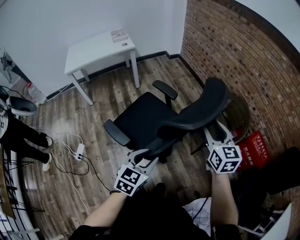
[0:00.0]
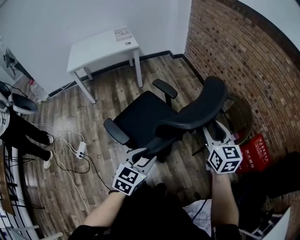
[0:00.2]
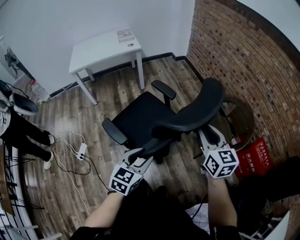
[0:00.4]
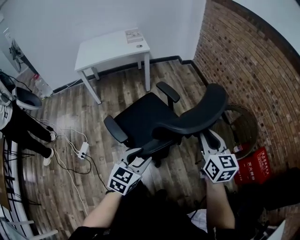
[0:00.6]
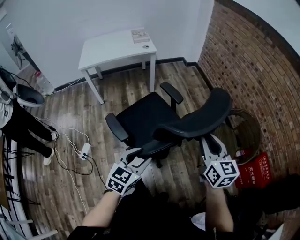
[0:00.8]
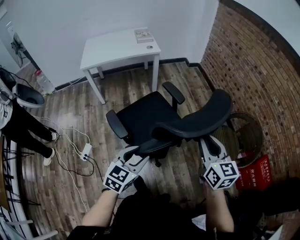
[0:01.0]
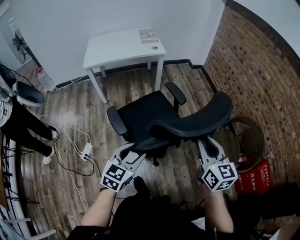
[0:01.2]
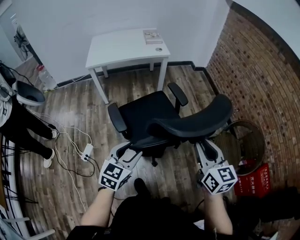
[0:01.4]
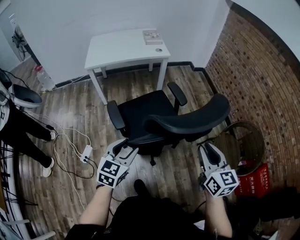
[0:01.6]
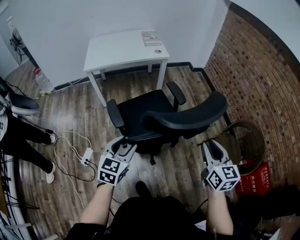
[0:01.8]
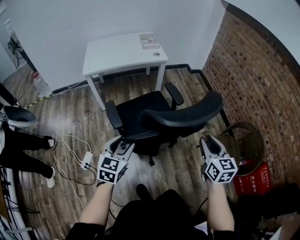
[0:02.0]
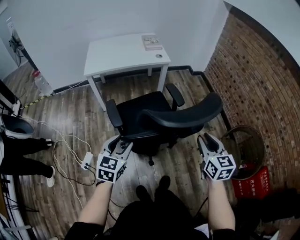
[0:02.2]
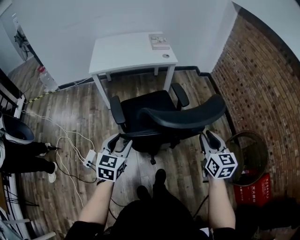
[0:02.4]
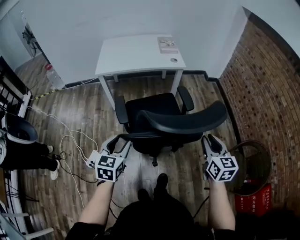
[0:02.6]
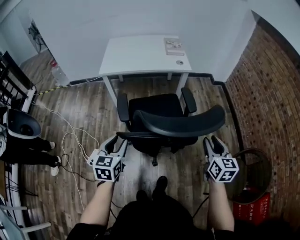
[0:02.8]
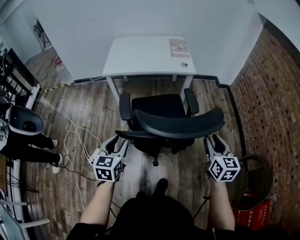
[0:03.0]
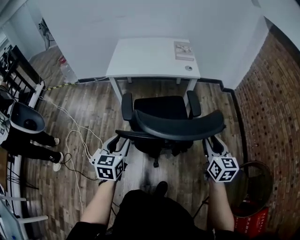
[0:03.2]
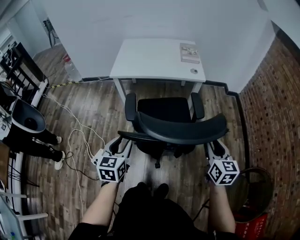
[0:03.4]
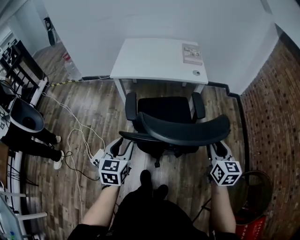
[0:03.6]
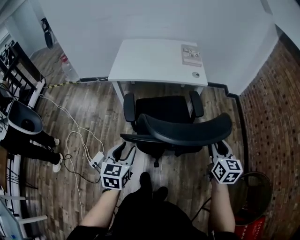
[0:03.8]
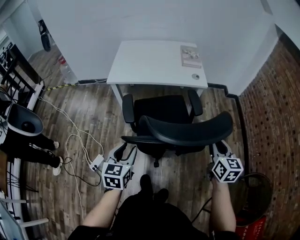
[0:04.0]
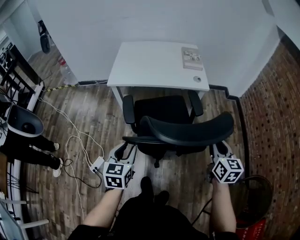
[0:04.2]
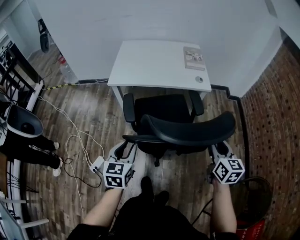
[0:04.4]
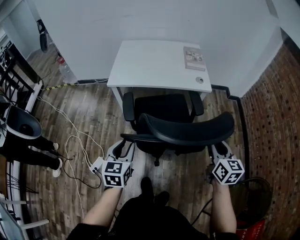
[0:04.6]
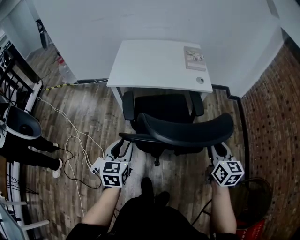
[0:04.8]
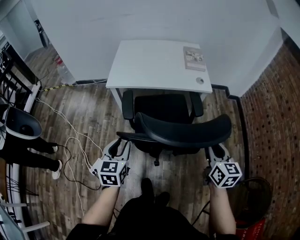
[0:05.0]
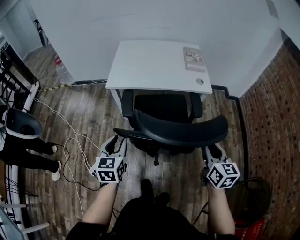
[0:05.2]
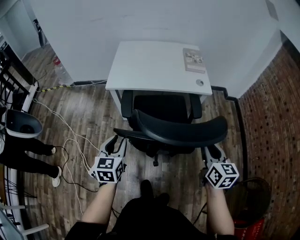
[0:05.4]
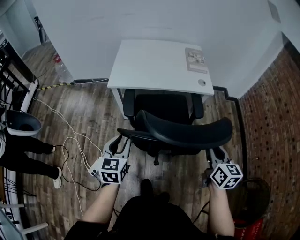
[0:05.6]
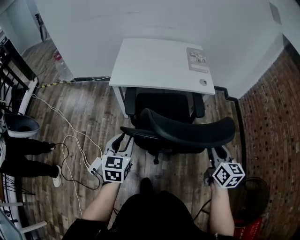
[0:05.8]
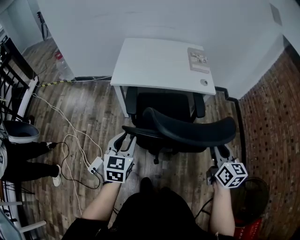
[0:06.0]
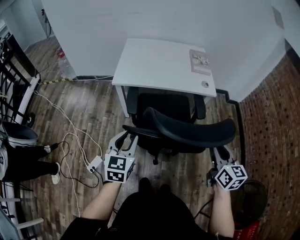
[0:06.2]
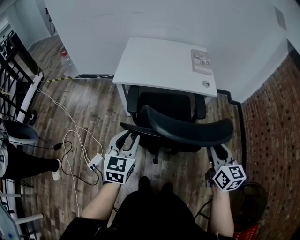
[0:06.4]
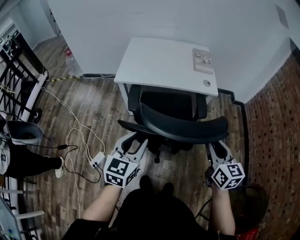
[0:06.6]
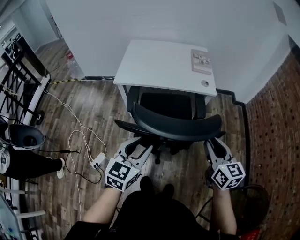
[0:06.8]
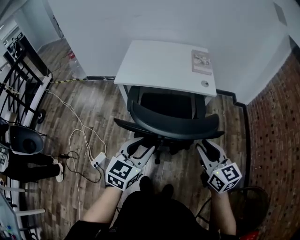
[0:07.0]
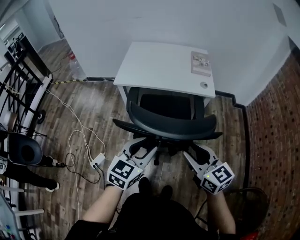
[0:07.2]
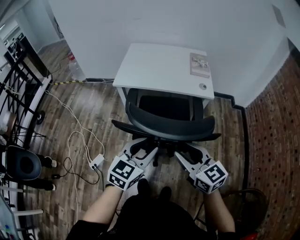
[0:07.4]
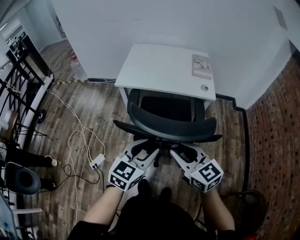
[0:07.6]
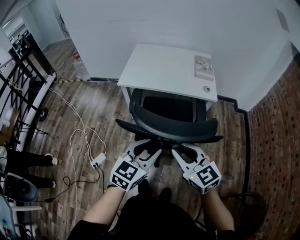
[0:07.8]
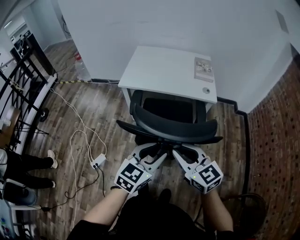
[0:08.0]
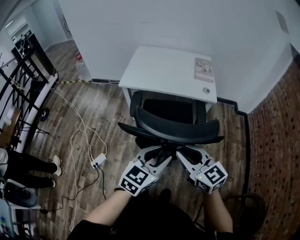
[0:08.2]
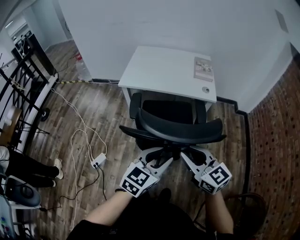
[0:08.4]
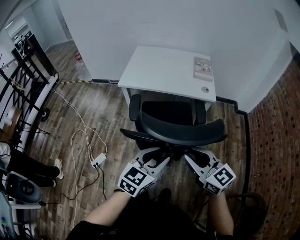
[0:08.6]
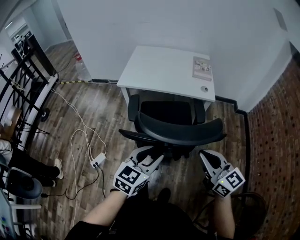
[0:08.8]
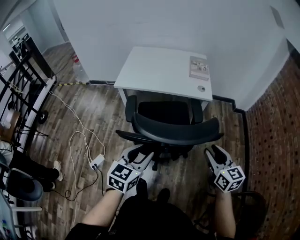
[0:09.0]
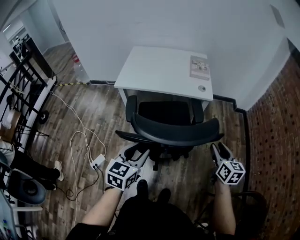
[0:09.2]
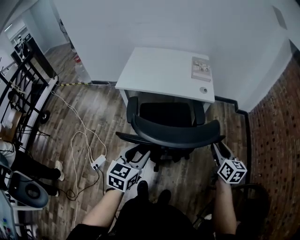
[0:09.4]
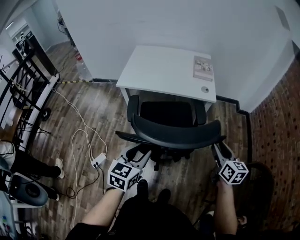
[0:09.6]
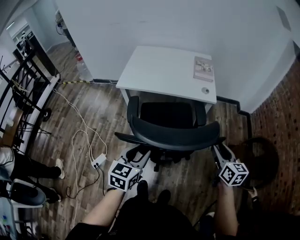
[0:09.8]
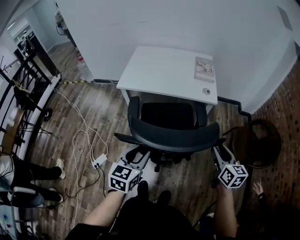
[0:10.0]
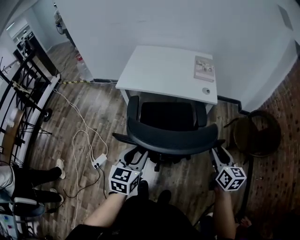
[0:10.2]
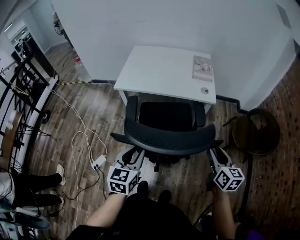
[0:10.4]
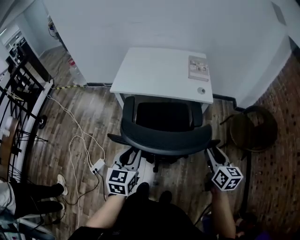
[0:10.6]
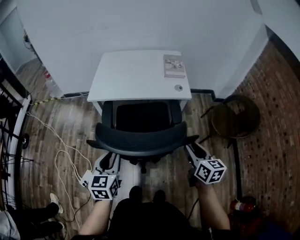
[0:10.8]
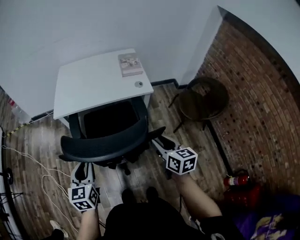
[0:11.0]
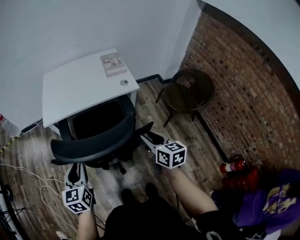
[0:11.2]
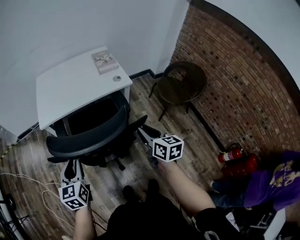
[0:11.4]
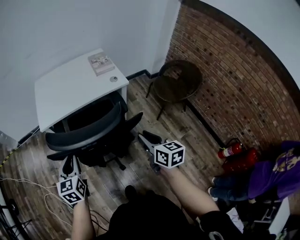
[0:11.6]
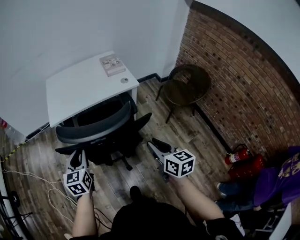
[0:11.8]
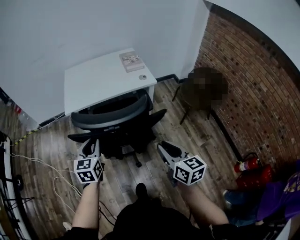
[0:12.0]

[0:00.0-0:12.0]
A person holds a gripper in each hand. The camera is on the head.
0.0 to 1.6 s: The right gripper heads to the left, covering some 30 cm, and closes up, while the left gripper is displaced to the left and forward by roughly 35 cm.
1.6 to 3.0 s: The right gripper heads forward, covering approximately 25 cm; the left gripper shifts approximately 20 cm forward and to the left, and rotates roughly 30 degrees.
3.0 to 4.4 s: Both grippers move forward, roughly 15 cm. The right gripper closes and opens again.
4.4 to 6.0 s: The left gripper goes approximately 10 cm to the left and forward, while the right gripper heads to the left, covering some 5 cm.
6.0 to 7.6 s: The left gripper is displaced to the right and backward by some 20 cm; the right gripper travels to the left by approximately 10 cm, and swivels roughly 40 degrees.
7.6 to 9.0 s: The right gripper travels to the right by about 20 cm, rotates approximately 20 degrees, and closes, then reopens.
9.0 to 10.4 s: The right gripper moves forward, some 5 cm. The left gripper changes place by some 5 cm.
10.4 to 12.0 s: The left gripper travels to the left by some 10 cm; the right gripper heads to the left and backward, covering roughly 20 cm, and closes up.

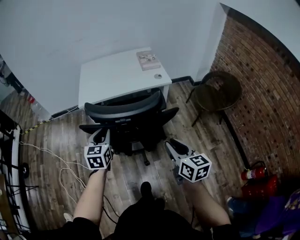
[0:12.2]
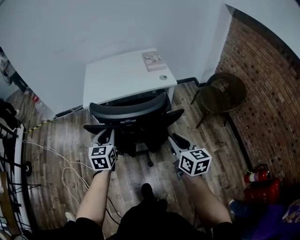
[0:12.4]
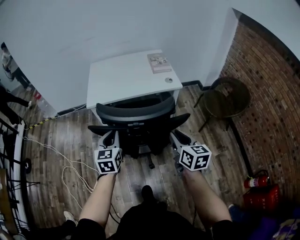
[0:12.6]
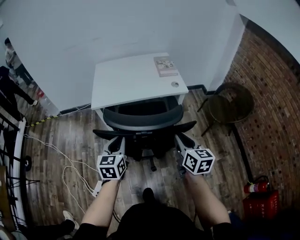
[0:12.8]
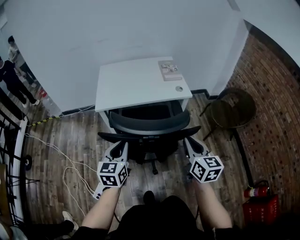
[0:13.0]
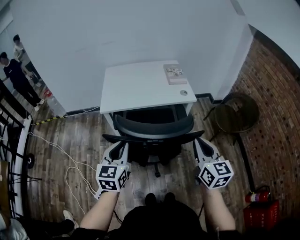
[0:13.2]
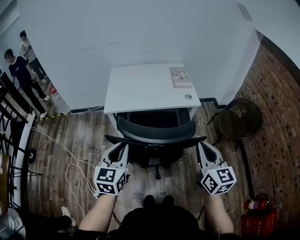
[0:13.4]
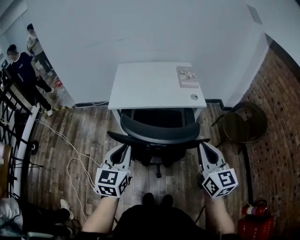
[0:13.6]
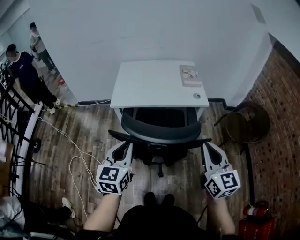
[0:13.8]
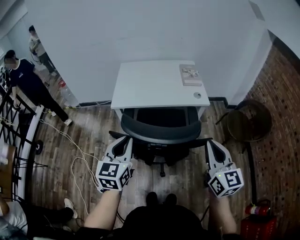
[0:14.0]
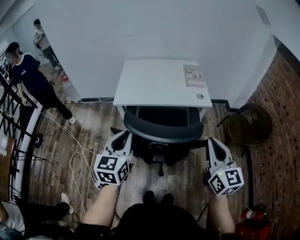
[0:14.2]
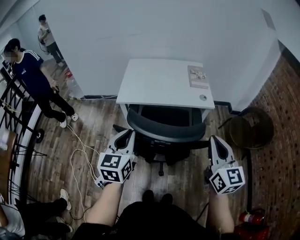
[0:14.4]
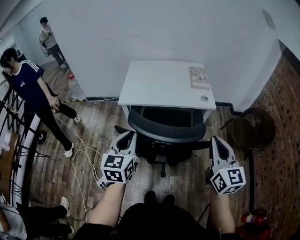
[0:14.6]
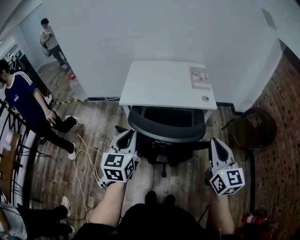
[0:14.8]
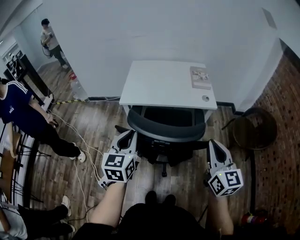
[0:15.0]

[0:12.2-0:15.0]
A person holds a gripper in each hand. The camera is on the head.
12.2 to 13.6 s: The right gripper moves upward and forward, approximately 15 cm, and closes its fingers, while the left gripper heads upward, covering approximately 10 cm.
13.6 to 15.0 s: The grippers stay close to where they were, moving slightly.

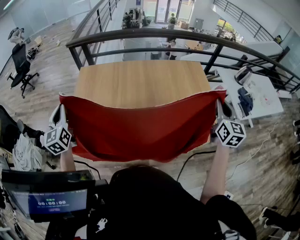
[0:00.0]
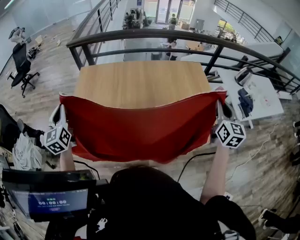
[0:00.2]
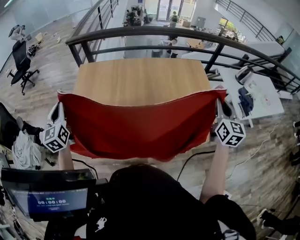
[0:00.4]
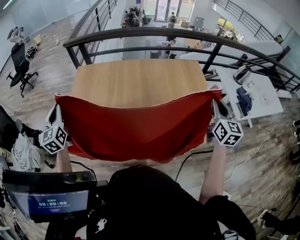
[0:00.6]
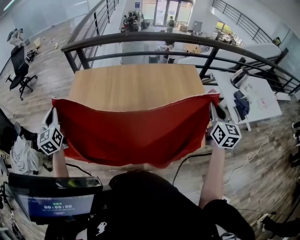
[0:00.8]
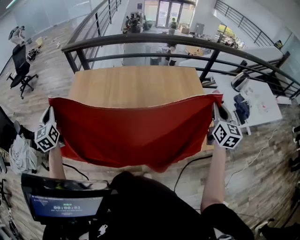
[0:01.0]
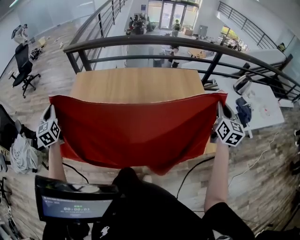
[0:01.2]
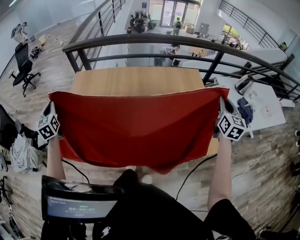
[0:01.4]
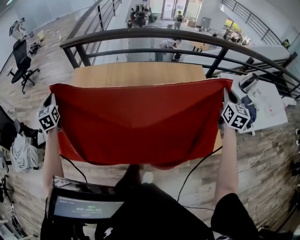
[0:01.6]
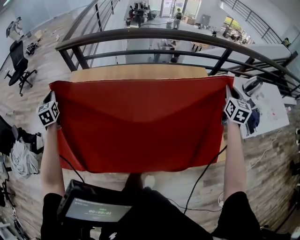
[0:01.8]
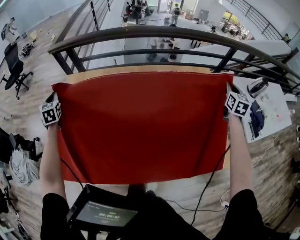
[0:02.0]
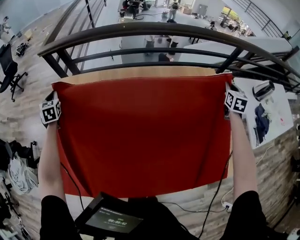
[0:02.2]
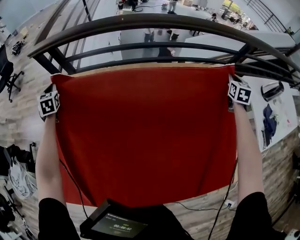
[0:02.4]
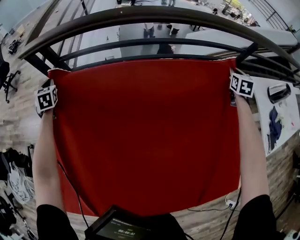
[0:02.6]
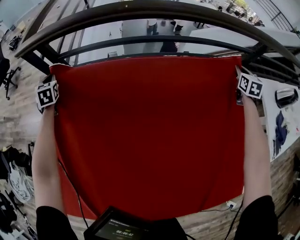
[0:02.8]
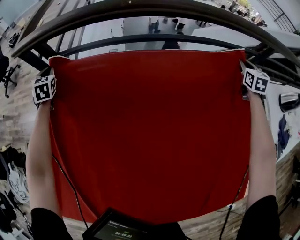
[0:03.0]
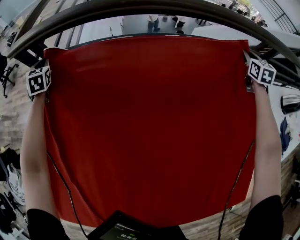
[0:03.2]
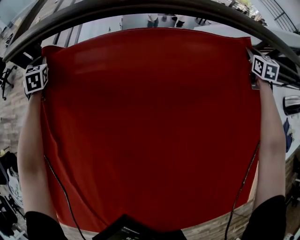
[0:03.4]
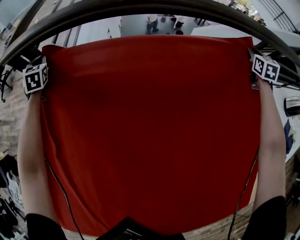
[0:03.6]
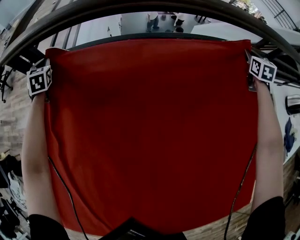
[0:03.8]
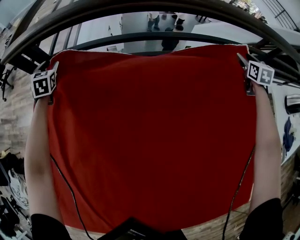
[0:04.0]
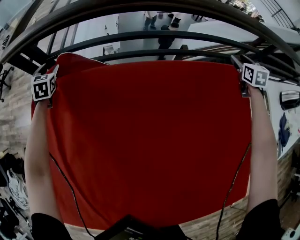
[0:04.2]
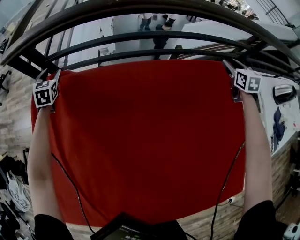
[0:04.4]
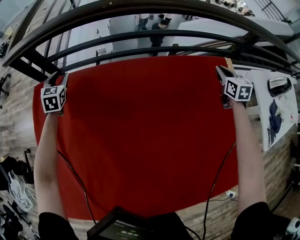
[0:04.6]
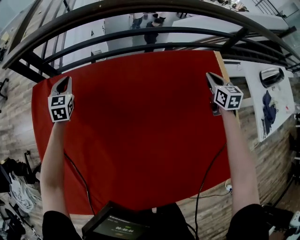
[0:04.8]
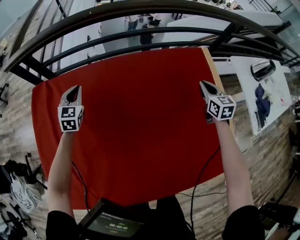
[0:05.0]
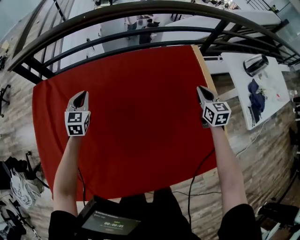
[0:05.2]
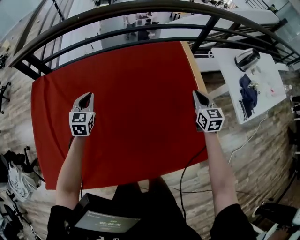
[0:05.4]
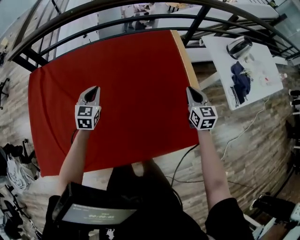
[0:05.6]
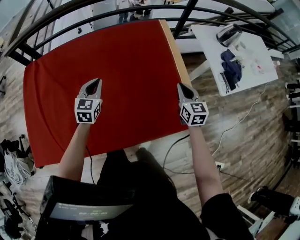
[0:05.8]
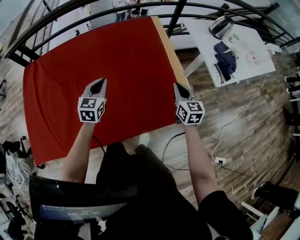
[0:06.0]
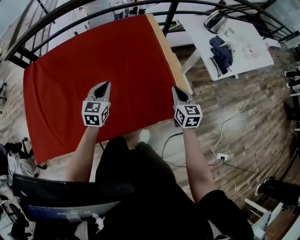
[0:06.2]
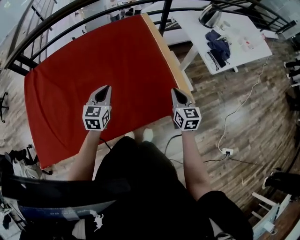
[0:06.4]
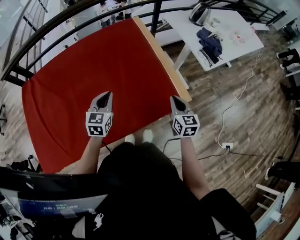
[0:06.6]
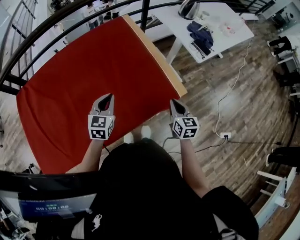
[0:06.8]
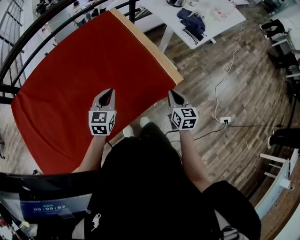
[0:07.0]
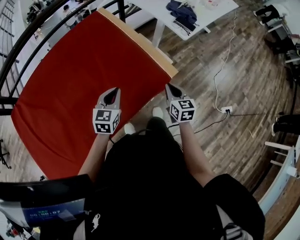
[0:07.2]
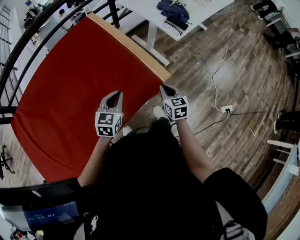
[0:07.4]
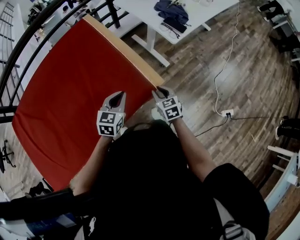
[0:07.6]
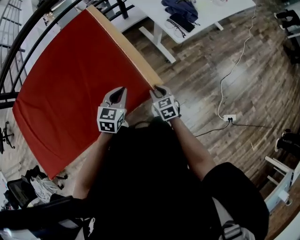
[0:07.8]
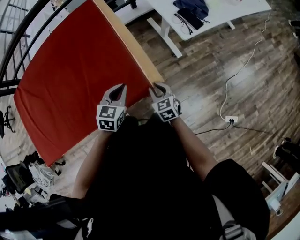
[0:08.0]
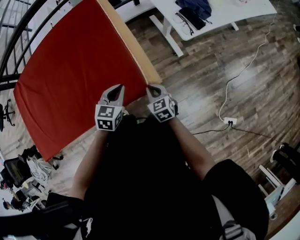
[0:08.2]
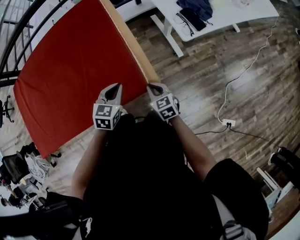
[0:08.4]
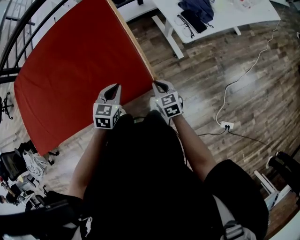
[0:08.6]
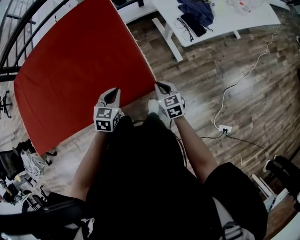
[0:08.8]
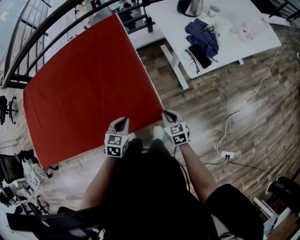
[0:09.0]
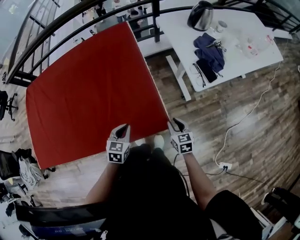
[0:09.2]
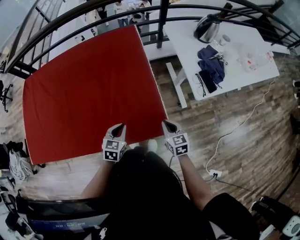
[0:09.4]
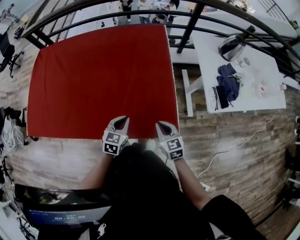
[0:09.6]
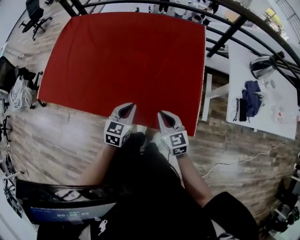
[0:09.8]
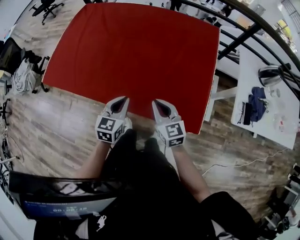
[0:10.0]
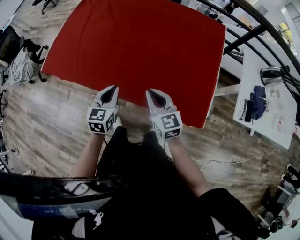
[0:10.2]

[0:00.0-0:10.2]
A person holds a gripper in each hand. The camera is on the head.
0.0 to 1.4 s: The left gripper travels forward by roughly 10 cm. Meanwhile the right gripper heads to the right and forward, covering approximately 15 cm.
1.4 to 3.0 s: Both grippers are carried forward, approximately 60 cm. Both grippers travel together downward, approximately 25 cm. The left gripper rotates some 30 degrees, while the right gripper rotates some 20 degrees.
3.0 to 4.4 s: The right gripper moves roughly 10 cm forward and comes back, and opens up. The left gripper shifts roughly 5 cm to the right, reaches some 10 cm forward, then returns, and opens up.
4.4 to 5.8 s: The right gripper is displaced backward by roughly 50 cm, and closes up. The left gripper goes roughly 70 cm to the right and backward, changes its angle by some 30 degrees, and closes its fingers.
5.8 to 7.2 s: The left gripper ends up some 25 cm from where it was, and changes its angle by approximately 30 degrees. Meanwhile the right gripper changes place by approximately 25 cm, and changes its angle by about 30 degrees.
7.2 to 8.8 s: The right gripper heads to the right, downward and forward, covering some 20 cm, changes its angle by about 30 degrees, and opens, then closes once more, while the left gripper moves to the right and downward, approximately 20 cm, and swivels some 20 degrees.
8.8 to 10.2 s: The left gripper moves approximately 35 cm, and turns by about 50 degrees. The right gripper changes place by some 40 cm, changes its angle by some 40 degrees, and opens, then closes again.
